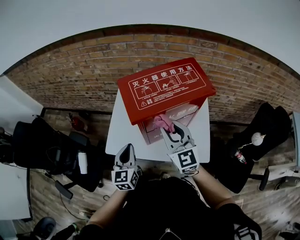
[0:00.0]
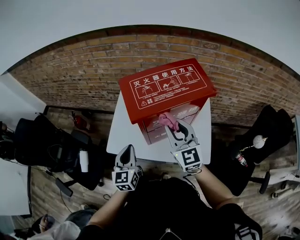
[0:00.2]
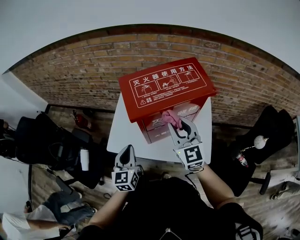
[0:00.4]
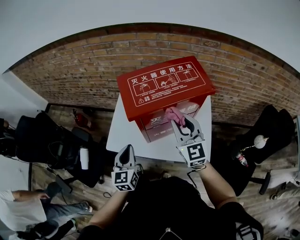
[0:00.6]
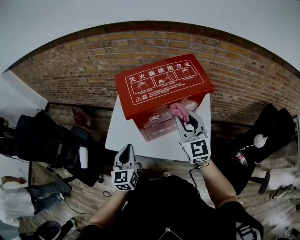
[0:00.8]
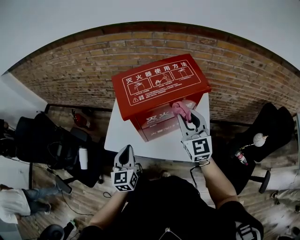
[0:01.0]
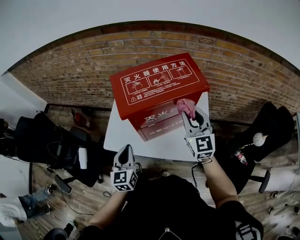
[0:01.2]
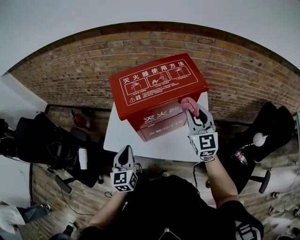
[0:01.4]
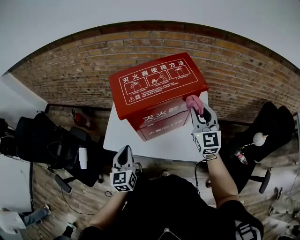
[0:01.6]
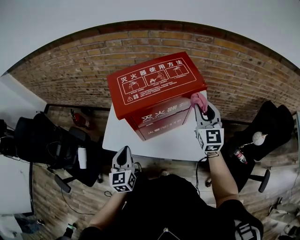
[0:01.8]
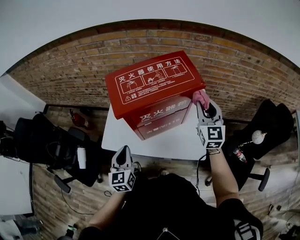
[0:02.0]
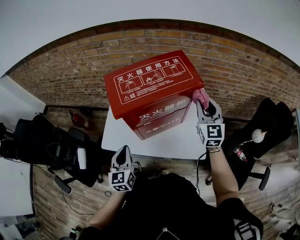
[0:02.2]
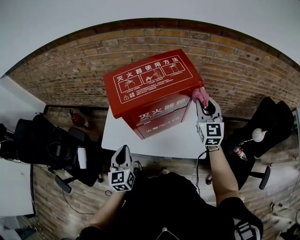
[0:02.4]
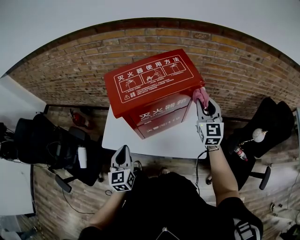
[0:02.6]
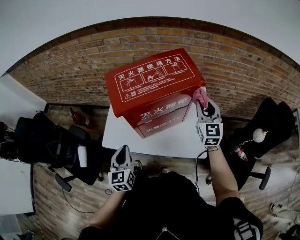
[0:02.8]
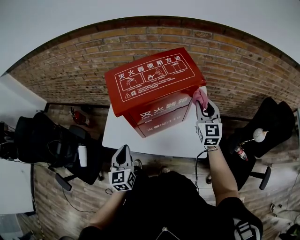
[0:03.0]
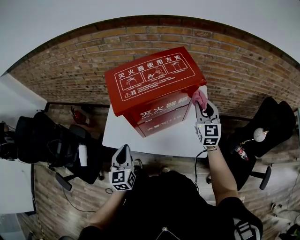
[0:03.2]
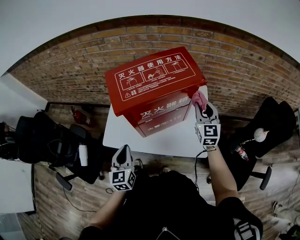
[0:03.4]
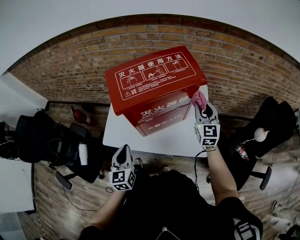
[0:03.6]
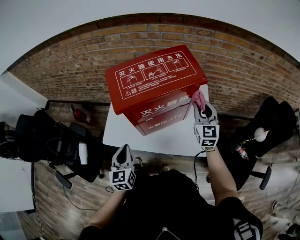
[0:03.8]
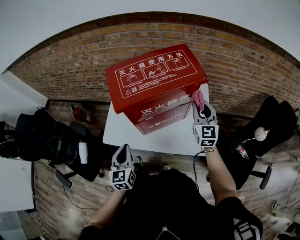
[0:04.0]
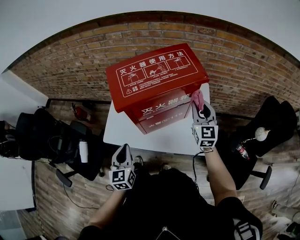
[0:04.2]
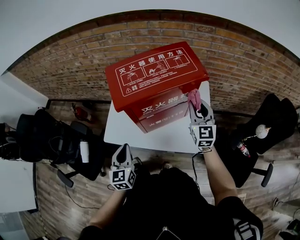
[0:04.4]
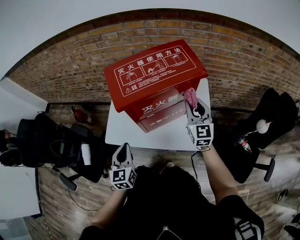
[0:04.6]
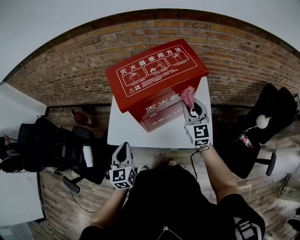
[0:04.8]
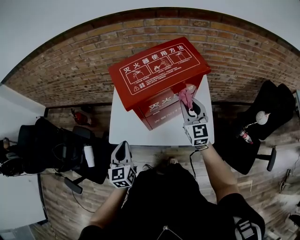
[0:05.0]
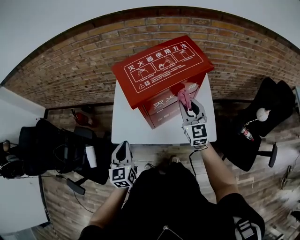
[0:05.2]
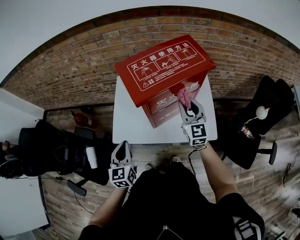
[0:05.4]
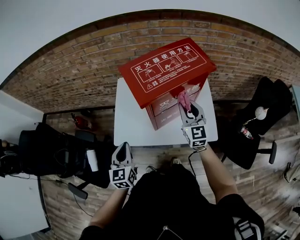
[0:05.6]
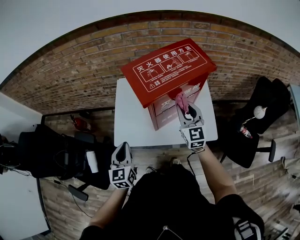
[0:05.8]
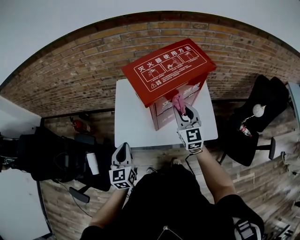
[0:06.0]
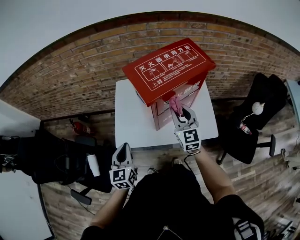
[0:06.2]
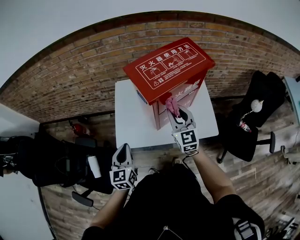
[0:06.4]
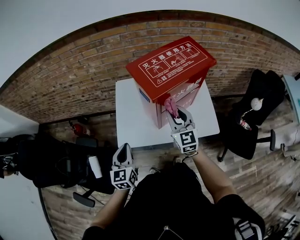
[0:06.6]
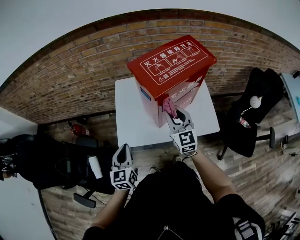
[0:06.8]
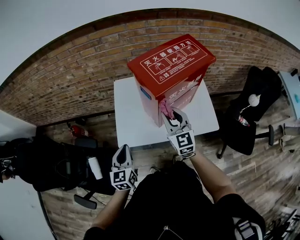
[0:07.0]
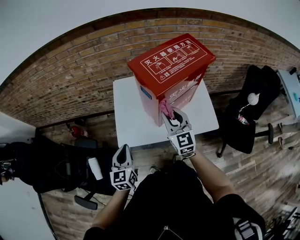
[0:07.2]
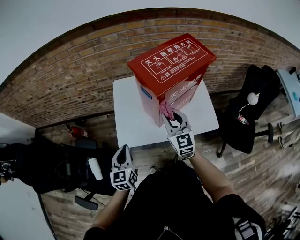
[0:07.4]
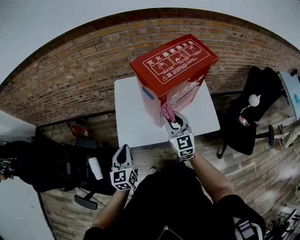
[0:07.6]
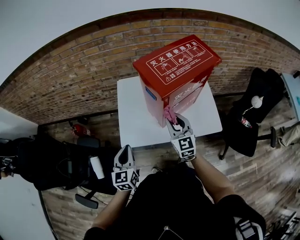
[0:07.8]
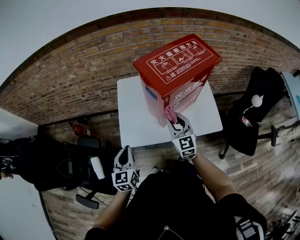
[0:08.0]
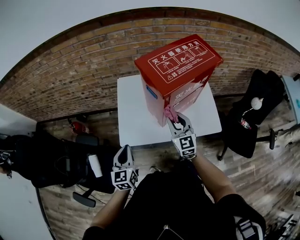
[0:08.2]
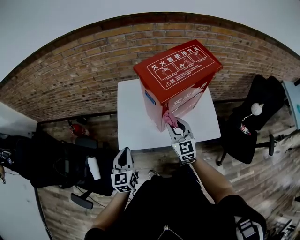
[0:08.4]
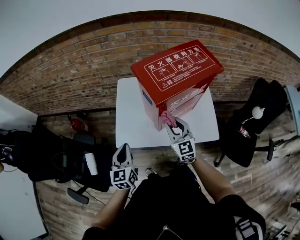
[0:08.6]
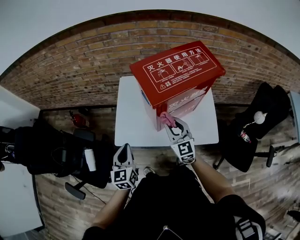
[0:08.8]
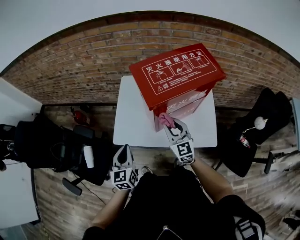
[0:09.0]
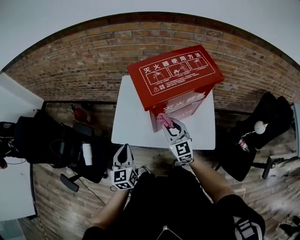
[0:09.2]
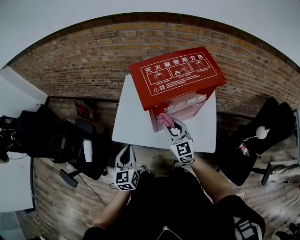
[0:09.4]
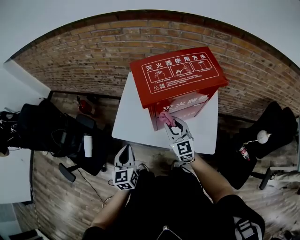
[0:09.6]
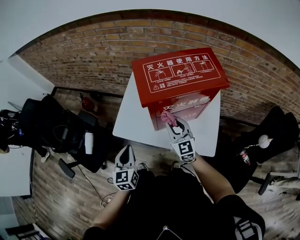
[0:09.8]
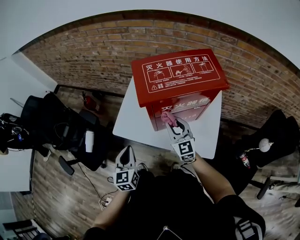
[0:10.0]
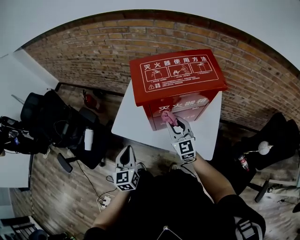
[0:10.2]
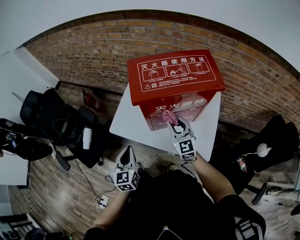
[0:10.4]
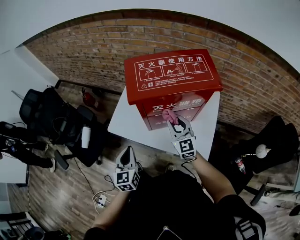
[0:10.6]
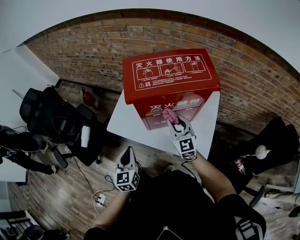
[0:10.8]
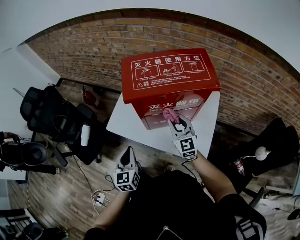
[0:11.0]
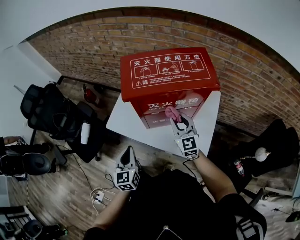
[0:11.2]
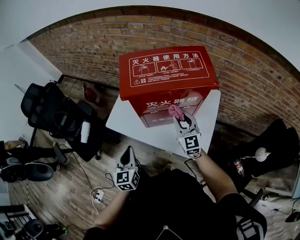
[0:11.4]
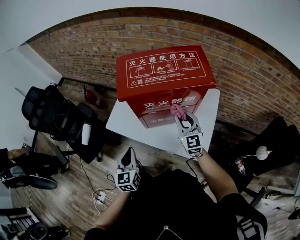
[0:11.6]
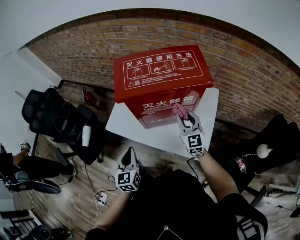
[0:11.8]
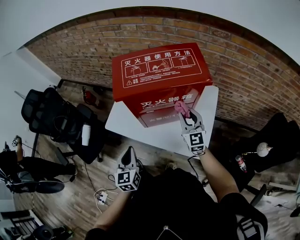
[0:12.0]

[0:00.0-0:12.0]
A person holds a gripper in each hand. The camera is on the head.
0:00.0 to 0:01.6: The right gripper shifts roughly 20 cm to the right.
0:01.6 to 0:03.0: The right gripper changes place by some 5 cm.
0:03.0 to 0:04.4: The grippers stay close to where they were, moving slightly.
0:04.4 to 0:06.0: Both grippers move to the left, approximately 15 cm.
0:06.0 to 0:07.6: The right gripper goes roughly 10 cm to the left, while the left gripper is displaced to the left by some 5 cm.
0:07.6 to 0:09.0: The left gripper is displaced to the right by some 5 cm, while the right gripper moves approximately 5 cm.
0:09.0 to 0:10.4: The right gripper heads to the right, covering some 5 cm. Meanwhile the left gripper travels to the right and backward by roughly 10 cm.
0:10.4 to 0:12.0: The left gripper moves to the right, roughly 5 cm, while the right gripper moves to the right, approximately 10 cm.

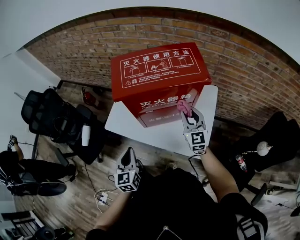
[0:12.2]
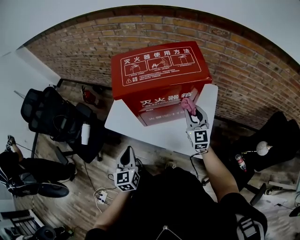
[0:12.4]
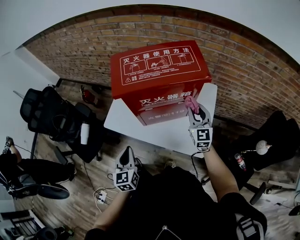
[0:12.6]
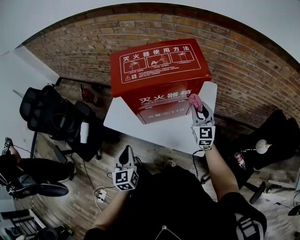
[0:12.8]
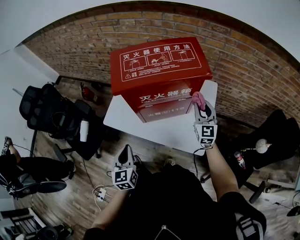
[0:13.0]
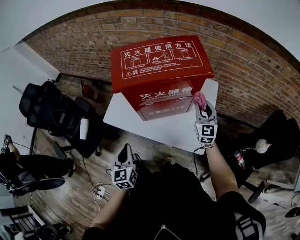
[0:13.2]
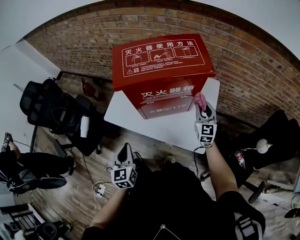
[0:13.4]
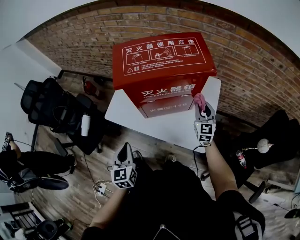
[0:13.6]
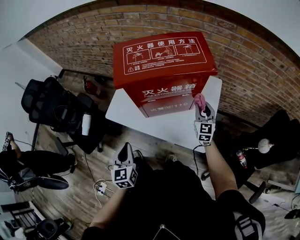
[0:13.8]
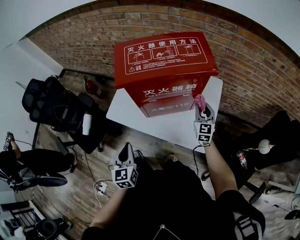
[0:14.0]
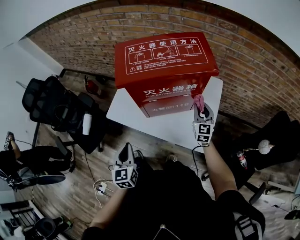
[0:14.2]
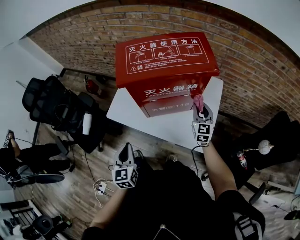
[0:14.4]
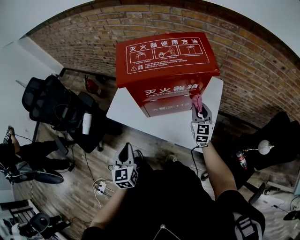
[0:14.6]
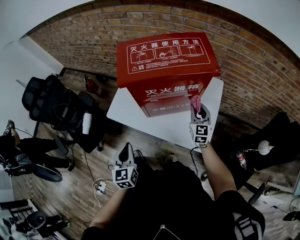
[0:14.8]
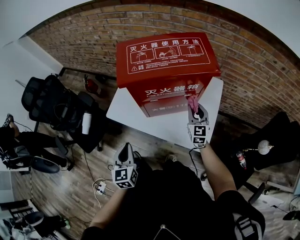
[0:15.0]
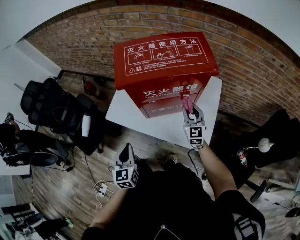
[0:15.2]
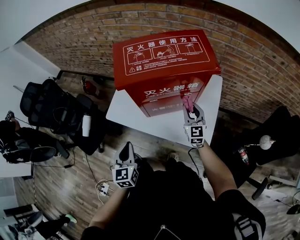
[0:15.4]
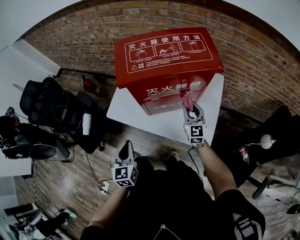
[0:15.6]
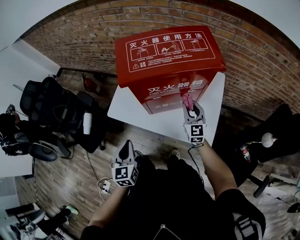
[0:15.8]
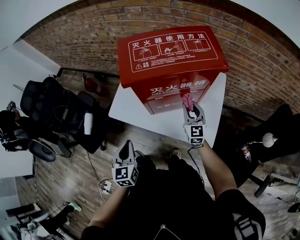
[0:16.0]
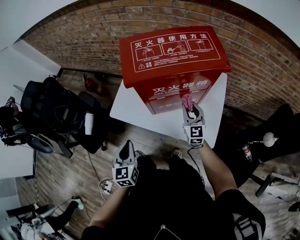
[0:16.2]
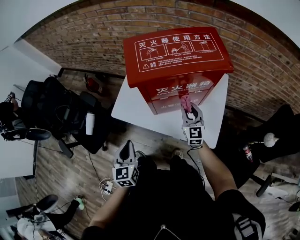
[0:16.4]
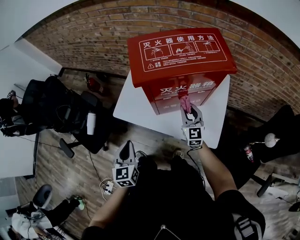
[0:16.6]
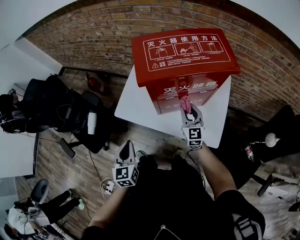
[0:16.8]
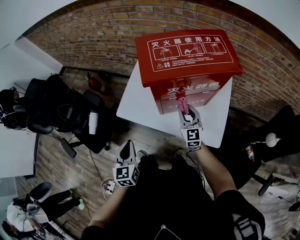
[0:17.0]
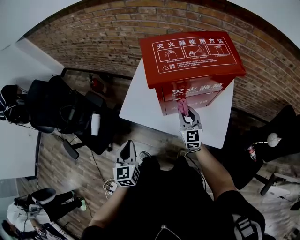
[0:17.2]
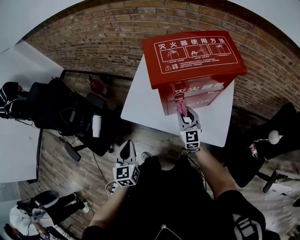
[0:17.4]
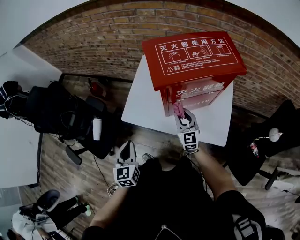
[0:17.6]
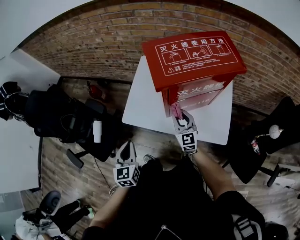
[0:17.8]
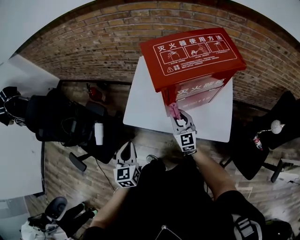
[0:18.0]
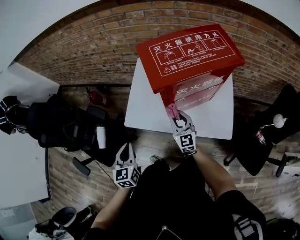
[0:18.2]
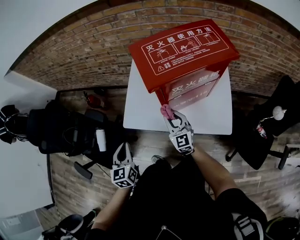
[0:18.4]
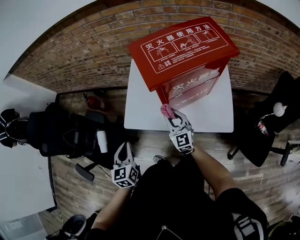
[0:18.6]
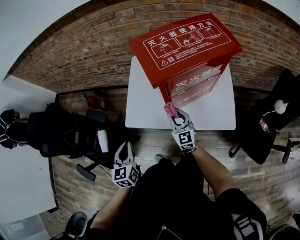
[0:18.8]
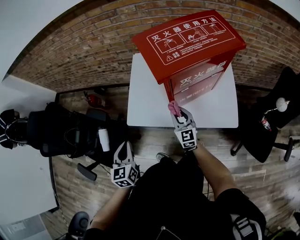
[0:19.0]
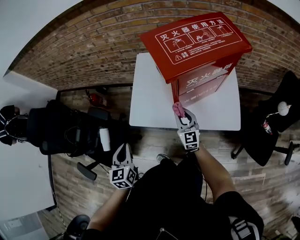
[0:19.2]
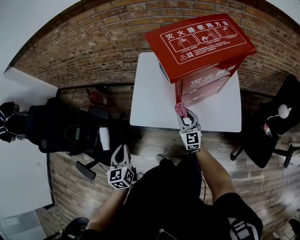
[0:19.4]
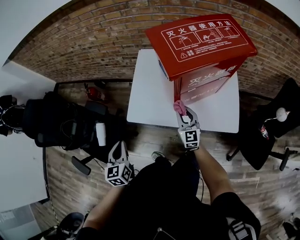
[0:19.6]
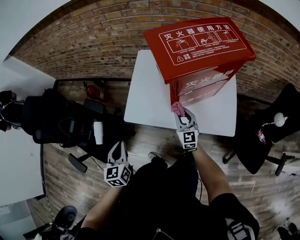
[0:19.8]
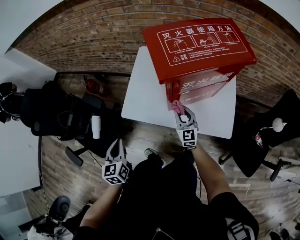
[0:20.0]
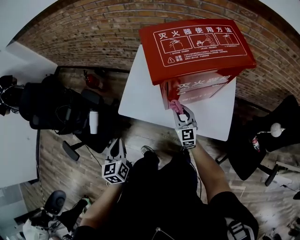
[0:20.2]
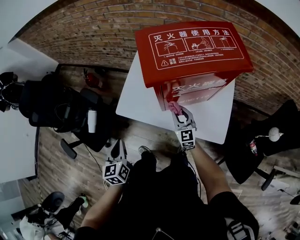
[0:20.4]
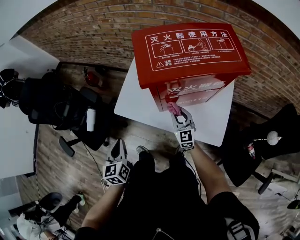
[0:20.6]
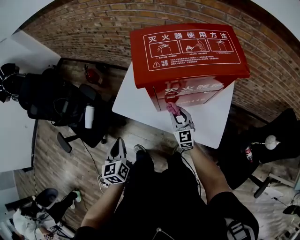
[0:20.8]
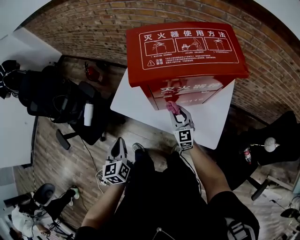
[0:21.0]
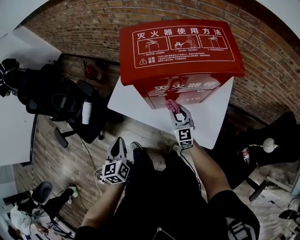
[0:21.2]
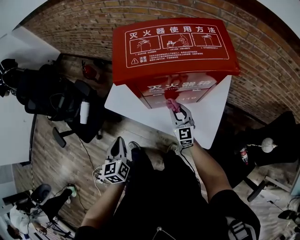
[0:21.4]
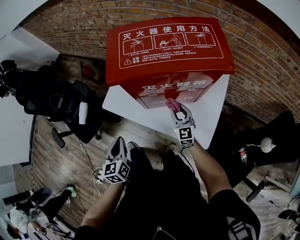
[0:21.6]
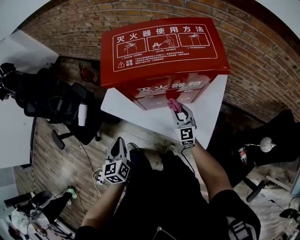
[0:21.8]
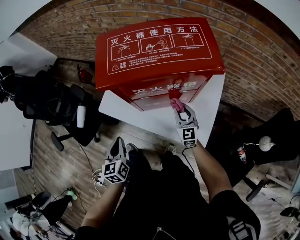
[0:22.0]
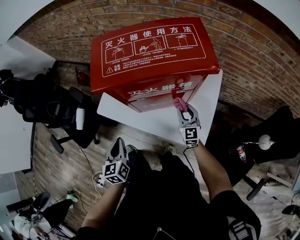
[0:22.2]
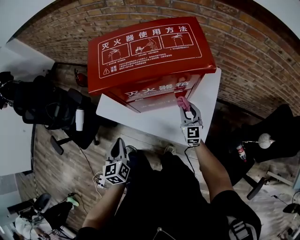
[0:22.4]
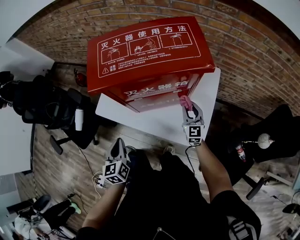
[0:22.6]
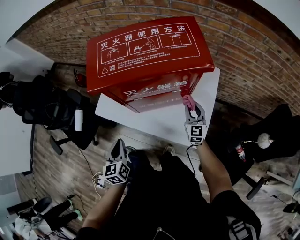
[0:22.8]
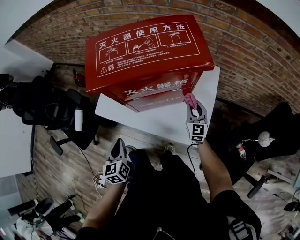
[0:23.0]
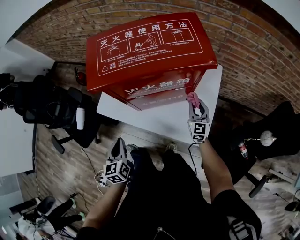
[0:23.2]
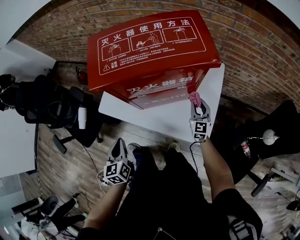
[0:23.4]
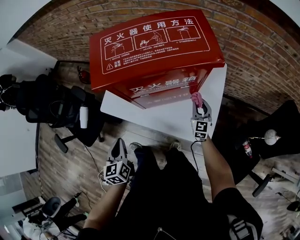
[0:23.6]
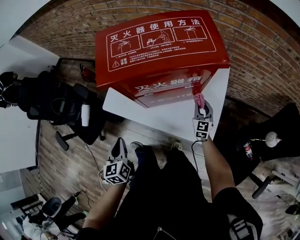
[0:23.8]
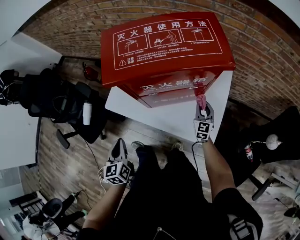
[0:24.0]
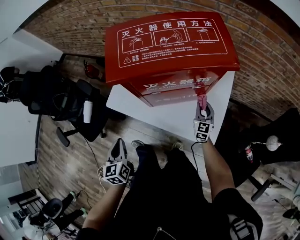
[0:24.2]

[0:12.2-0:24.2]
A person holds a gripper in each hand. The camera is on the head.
0:12.2 to 0:13.8: The right gripper goes approximately 10 cm downward and to the right.
0:13.8 to 0:15.2: The right gripper heads to the left, covering about 10 cm.
0:15.2 to 0:16.6: Both grippers travel together to the left, roughly 5 cm.
0:16.6 to 0:18.2: The right gripper moves to the left, some 15 cm. The left gripper travels to the left and forward by approximately 10 cm.
0:18.2 to 0:19.8: The right gripper moves downward, some 5 cm. The left gripper goes about 5 cm to the left.
0:19.8 to 0:21.2: The left gripper travels to the right and backward by some 15 cm. Meanwhile the right gripper travels to the right by approximately 10 cm.
0:21.2 to 0:22.6: The left gripper is displaced to the right by about 10 cm. The right gripper travels to the right by approximately 15 cm.
0:22.6 to 0:24.2: The left gripper goes about 5 cm to the left; the right gripper goes roughly 5 cm downward.
